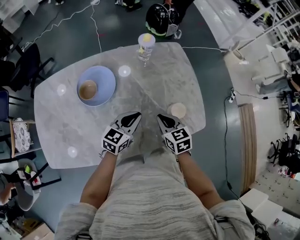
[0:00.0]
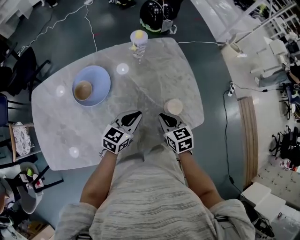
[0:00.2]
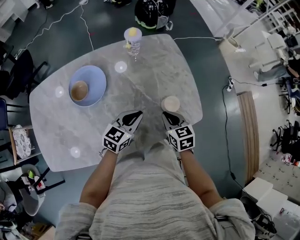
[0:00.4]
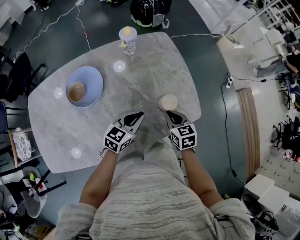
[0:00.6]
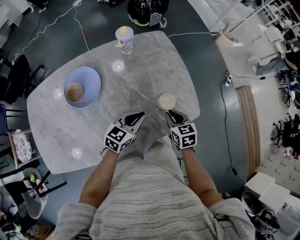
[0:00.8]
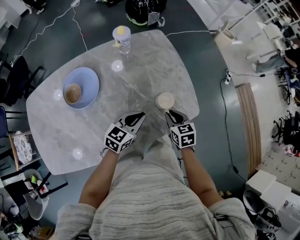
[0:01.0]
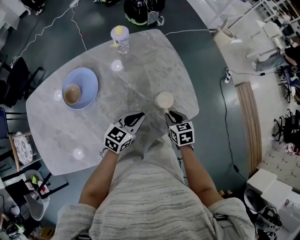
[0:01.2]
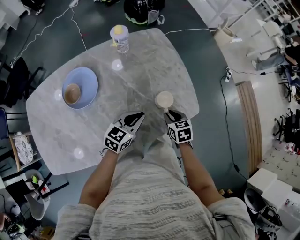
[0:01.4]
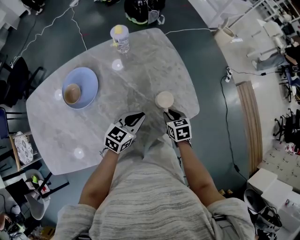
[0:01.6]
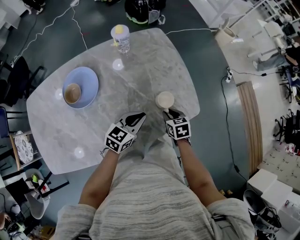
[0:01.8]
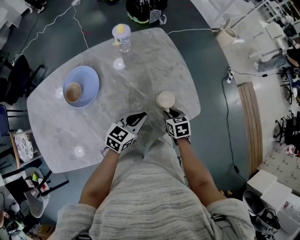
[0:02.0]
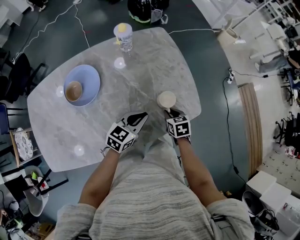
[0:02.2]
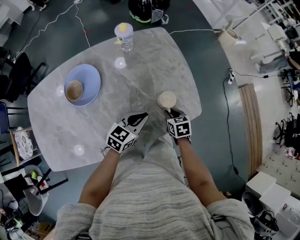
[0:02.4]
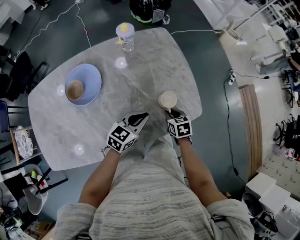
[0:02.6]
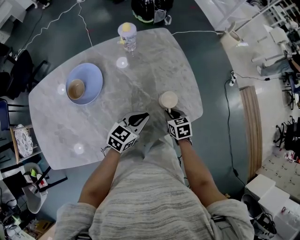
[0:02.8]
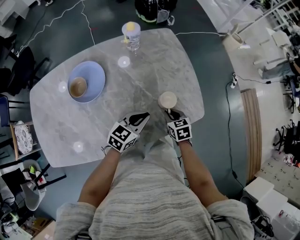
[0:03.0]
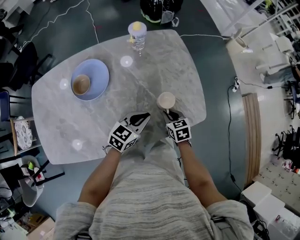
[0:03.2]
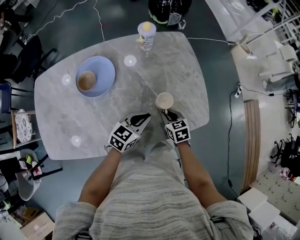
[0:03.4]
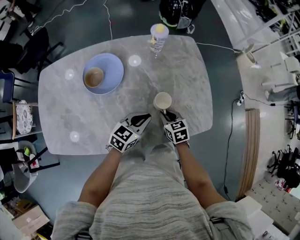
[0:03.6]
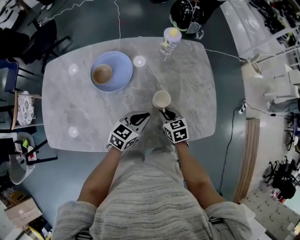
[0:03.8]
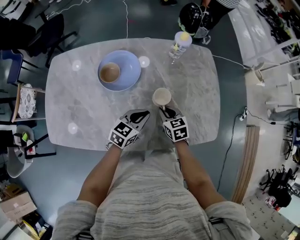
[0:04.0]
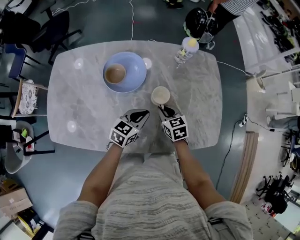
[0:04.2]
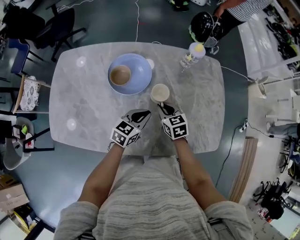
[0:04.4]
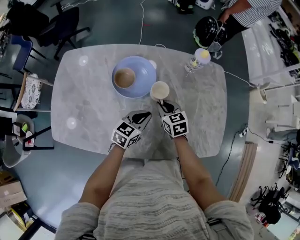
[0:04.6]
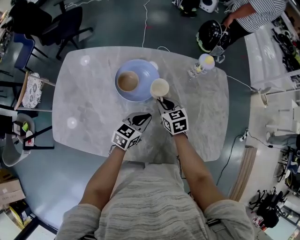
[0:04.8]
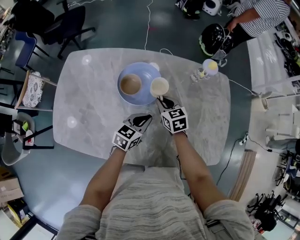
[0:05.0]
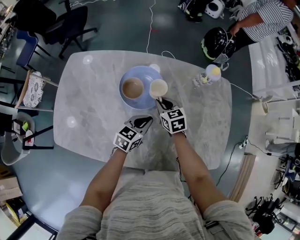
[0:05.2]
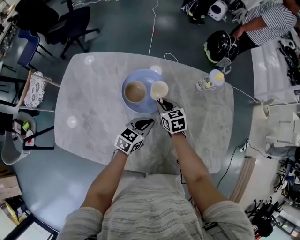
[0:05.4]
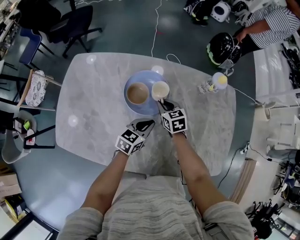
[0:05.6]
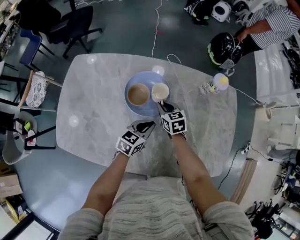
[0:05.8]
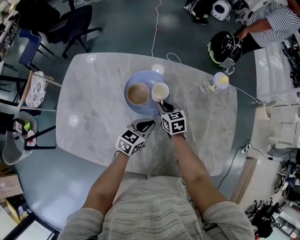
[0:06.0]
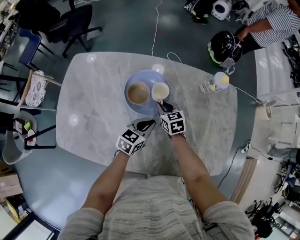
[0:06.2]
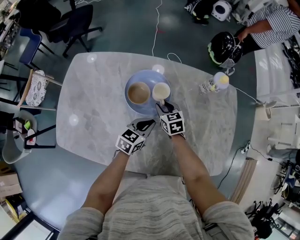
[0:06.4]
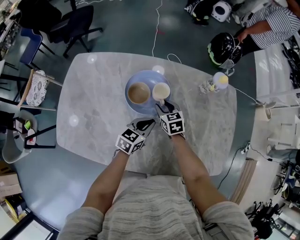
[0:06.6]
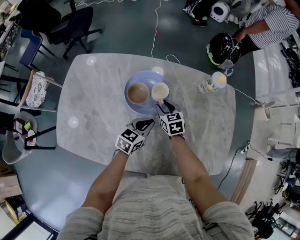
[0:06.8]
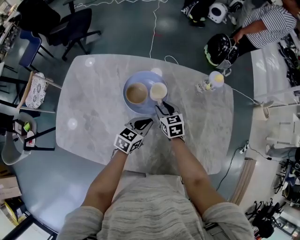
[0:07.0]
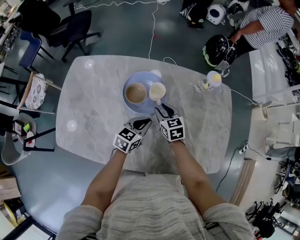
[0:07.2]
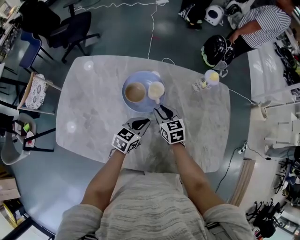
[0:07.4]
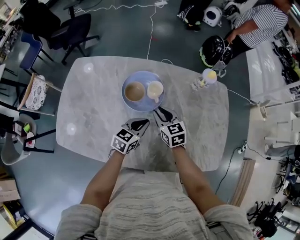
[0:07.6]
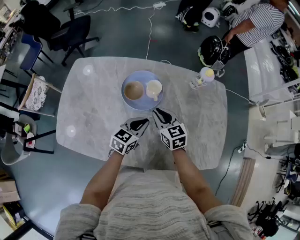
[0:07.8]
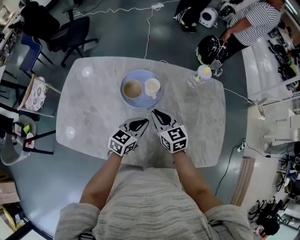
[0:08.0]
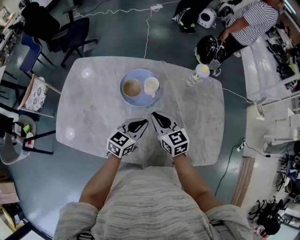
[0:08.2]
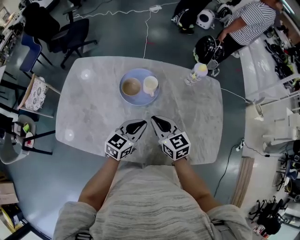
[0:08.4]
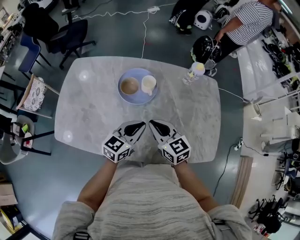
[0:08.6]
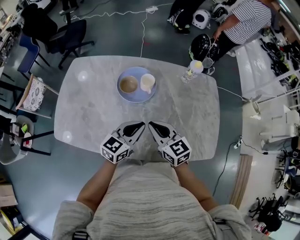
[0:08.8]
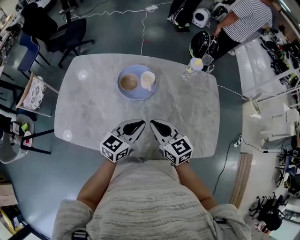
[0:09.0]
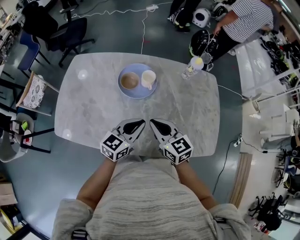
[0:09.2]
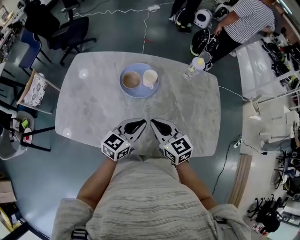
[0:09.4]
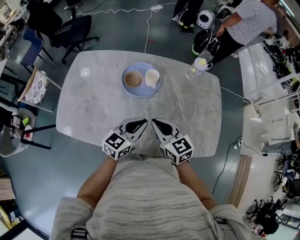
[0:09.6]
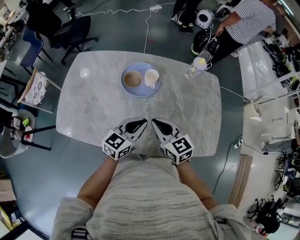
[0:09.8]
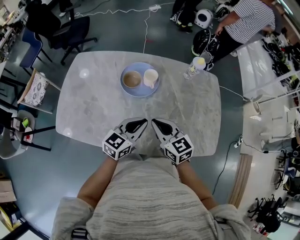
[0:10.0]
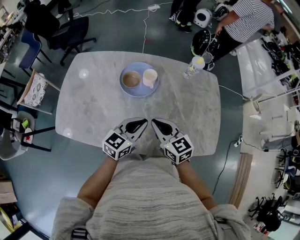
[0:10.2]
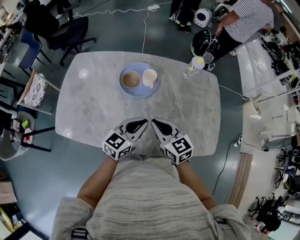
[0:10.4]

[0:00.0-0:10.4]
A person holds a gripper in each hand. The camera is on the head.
0:00.0 to 0:01.4: The right gripper shifts some 15 cm to the right and downward, and swivels about 20 degrees; the left gripper shifts some 10 cm to the right.
0:01.4 to 0:03.0: There are only small adjustments of the grippers.
0:03.0 to 0:04.4: Both grippers travel together to the left, some 20 cm. The right gripper swivels roughly 30 degrees. Meanwhile the left gripper changes its angle by about 20 degrees.
0:04.4 to 0:06.0: The right gripper shifts about 15 cm forward and to the left; the left gripper travels to the left and forward by approximately 10 cm.
0:06.0 to 0:07.4: The right gripper travels upward and backward by roughly 10 cm.
0:07.4 to 0:09.0: The left gripper shifts roughly 15 cm upward and backward, while the right gripper moves backward and upward, about 20 cm, and closes its fingers.
0:09.0 to 0:10.4: Neither gripper changes place.

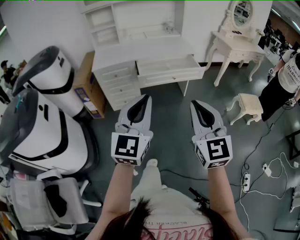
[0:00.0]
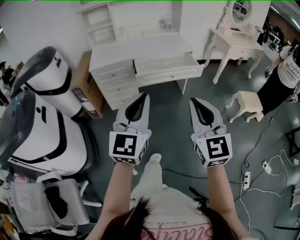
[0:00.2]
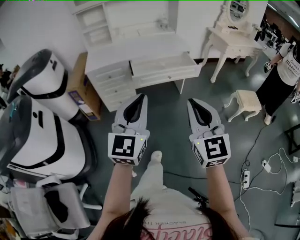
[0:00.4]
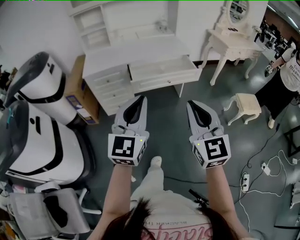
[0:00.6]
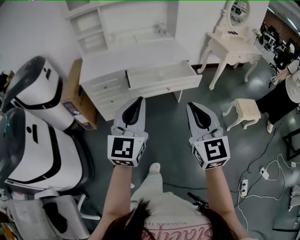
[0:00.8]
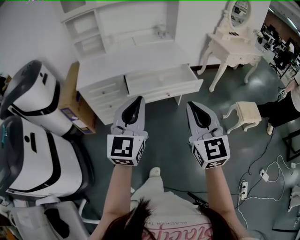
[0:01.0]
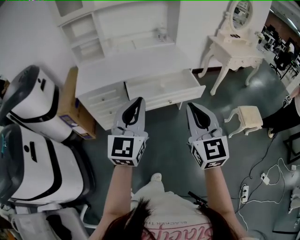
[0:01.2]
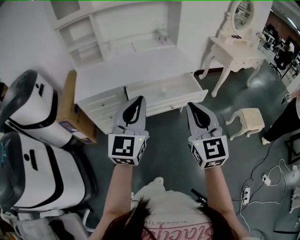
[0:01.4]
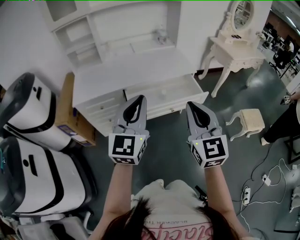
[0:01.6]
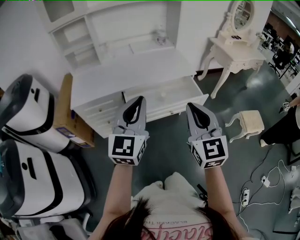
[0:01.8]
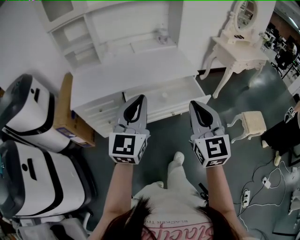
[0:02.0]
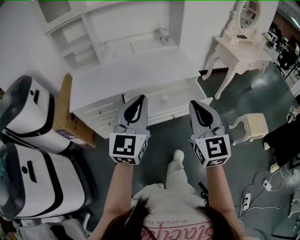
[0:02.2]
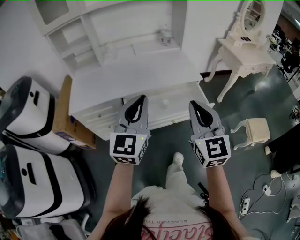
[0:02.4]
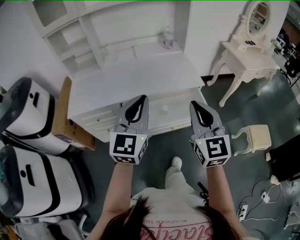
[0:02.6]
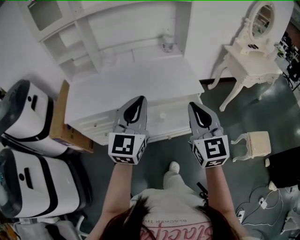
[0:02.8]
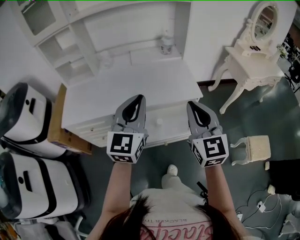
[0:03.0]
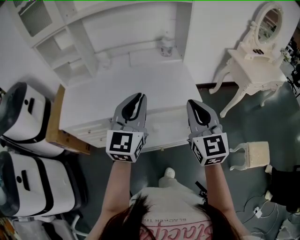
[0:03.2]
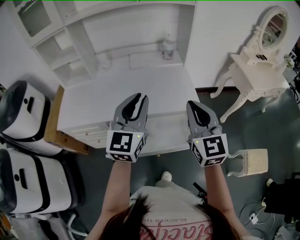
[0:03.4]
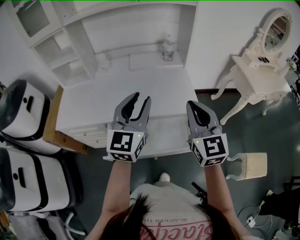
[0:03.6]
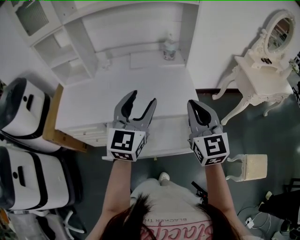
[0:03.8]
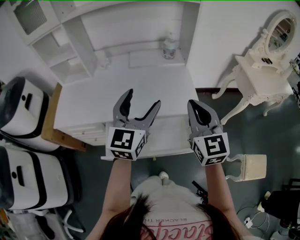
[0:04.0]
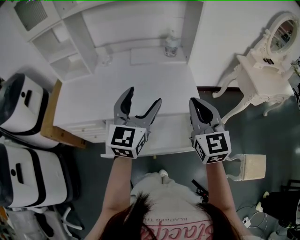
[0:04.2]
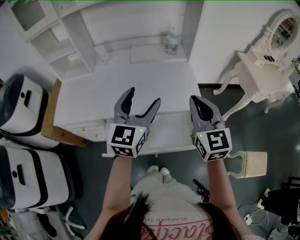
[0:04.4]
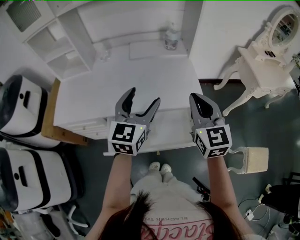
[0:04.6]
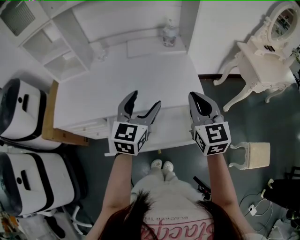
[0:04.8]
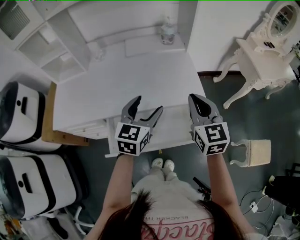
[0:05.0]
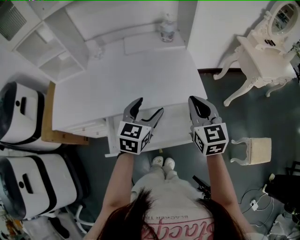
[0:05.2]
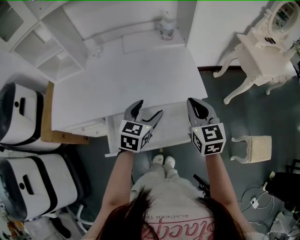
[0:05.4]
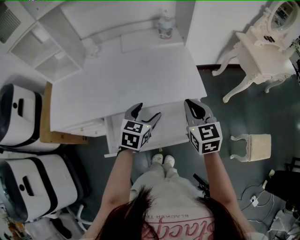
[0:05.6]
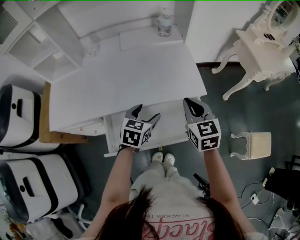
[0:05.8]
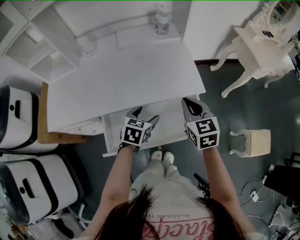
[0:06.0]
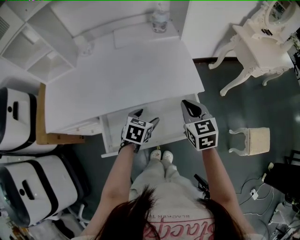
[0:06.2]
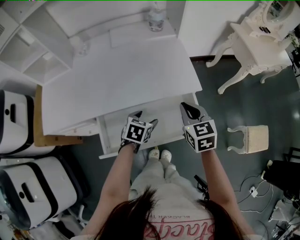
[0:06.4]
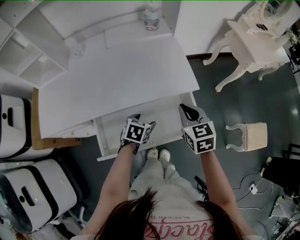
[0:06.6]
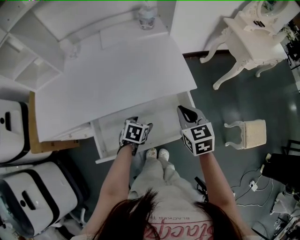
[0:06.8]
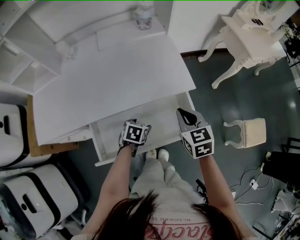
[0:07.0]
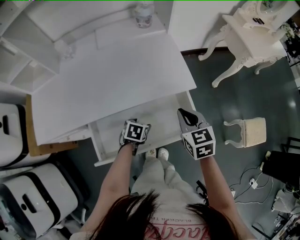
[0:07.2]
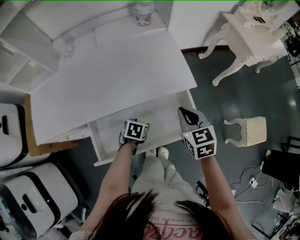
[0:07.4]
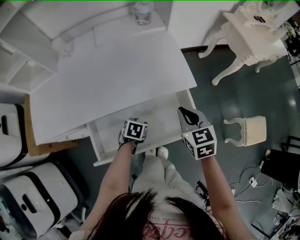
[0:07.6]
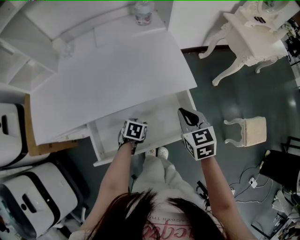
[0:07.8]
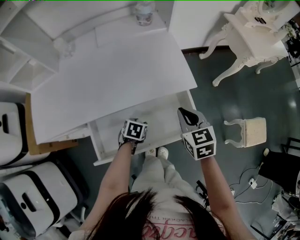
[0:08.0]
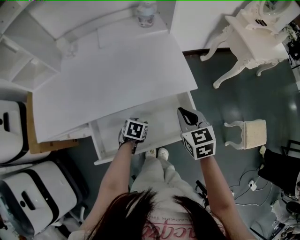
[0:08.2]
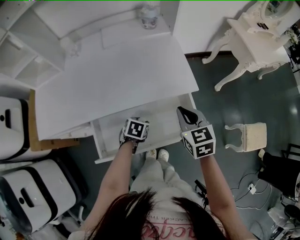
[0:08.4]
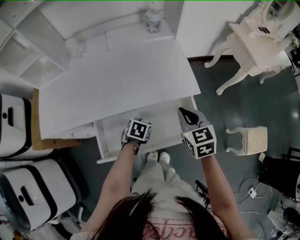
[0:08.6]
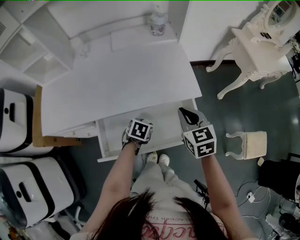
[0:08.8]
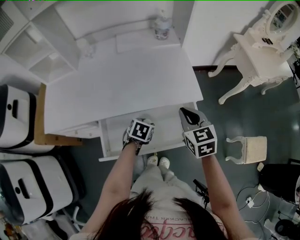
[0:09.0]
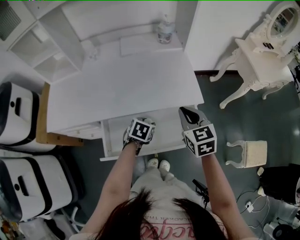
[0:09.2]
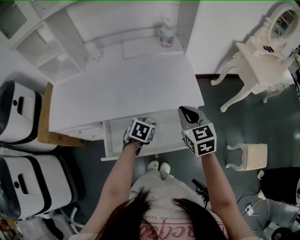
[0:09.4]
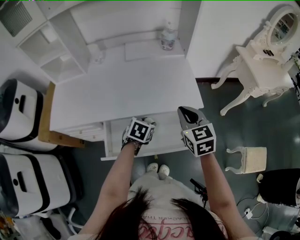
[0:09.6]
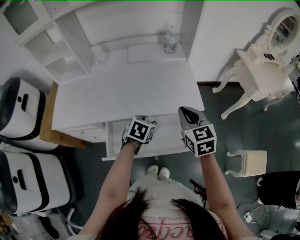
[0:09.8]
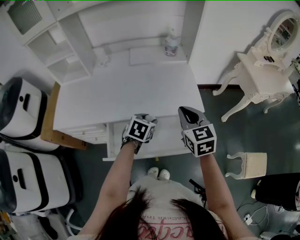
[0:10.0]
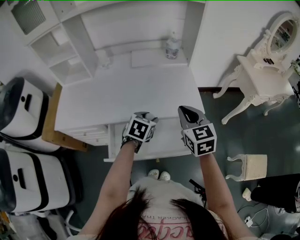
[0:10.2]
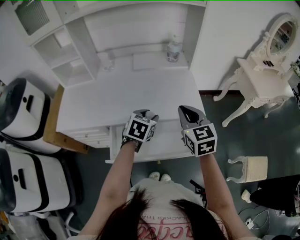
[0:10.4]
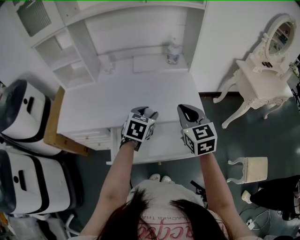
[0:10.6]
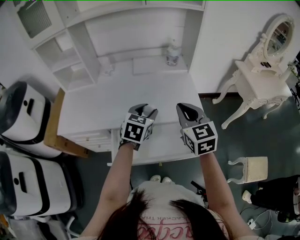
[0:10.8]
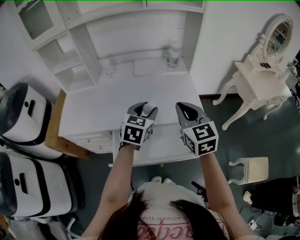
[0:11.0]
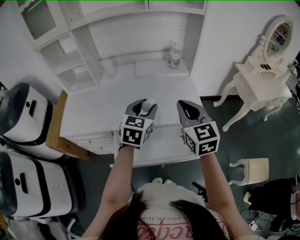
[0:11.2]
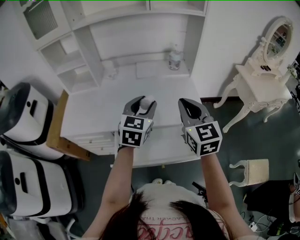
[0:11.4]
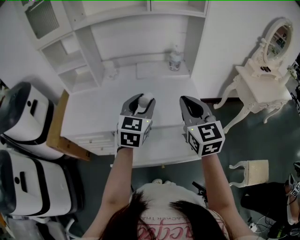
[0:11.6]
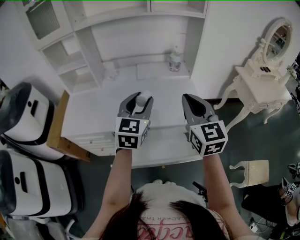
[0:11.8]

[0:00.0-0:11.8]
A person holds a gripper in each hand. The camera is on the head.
0:00.0 to 0:01.4: Both grippers travel together forward, some 30 cm.
0:01.4 to 0:03.0: Both grippers move forward, roughly 25 cm.
0:03.0 to 0:04.4: Both grippers move forward, some 10 cm. The left gripper opens its fingers.
0:04.4 to 0:06.0: The left gripper travels downward by approximately 25 cm, and points its fingers some 40 degrees further downward. Meanwhile the right gripper shifts approximately 15 cm downward, and turns by about 20 degrees.
0:06.0 to 0:07.4: The right gripper heads downward, covering roughly 5 cm, while the left gripper travels downward by some 15 cm, and turns by roughly 20 degrees.
0:07.4 to 0:08.8: The grippers stay close to where they were, moving slightly.
0:08.8 to 0:10.4: The left gripper moves upward, some 20 cm, and swivels about 30 degrees. The right gripper shifts some 10 cm upward.
0:10.4 to 0:11.8: The right gripper heads upward, covering about 10 cm. The left gripper goes approximately 20 cm upward, and tilts its fingers roughly 30 degrees upward.

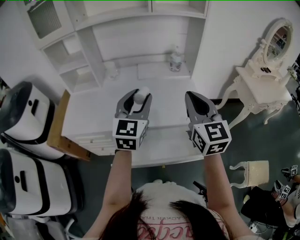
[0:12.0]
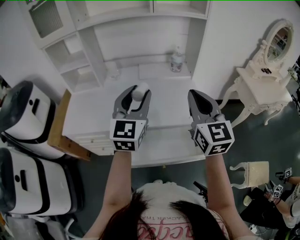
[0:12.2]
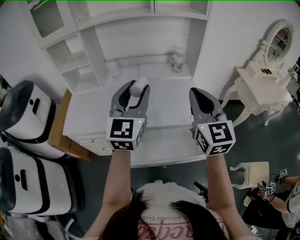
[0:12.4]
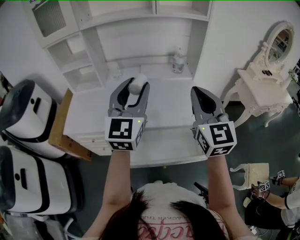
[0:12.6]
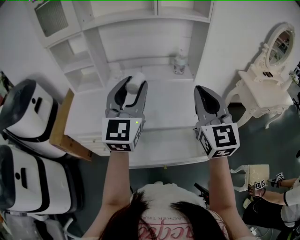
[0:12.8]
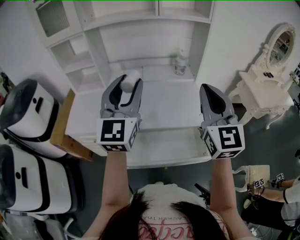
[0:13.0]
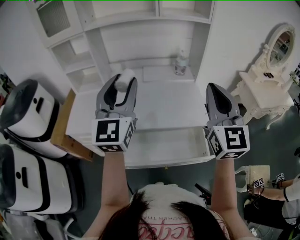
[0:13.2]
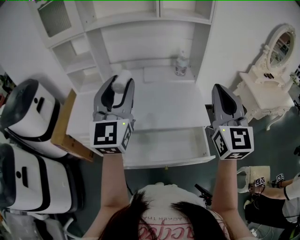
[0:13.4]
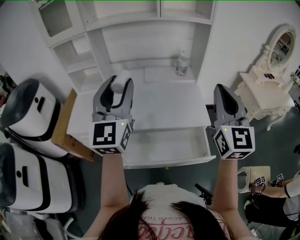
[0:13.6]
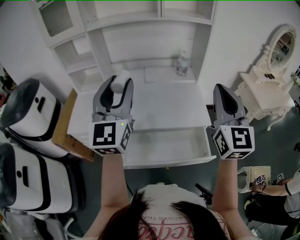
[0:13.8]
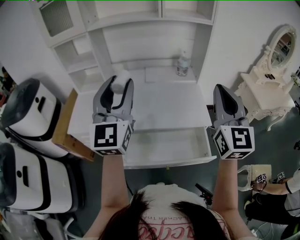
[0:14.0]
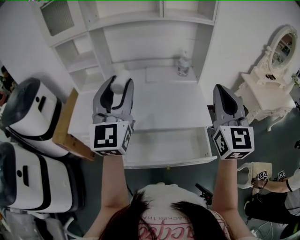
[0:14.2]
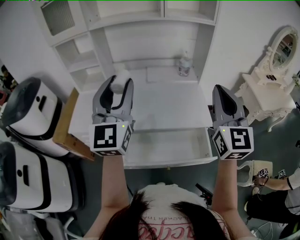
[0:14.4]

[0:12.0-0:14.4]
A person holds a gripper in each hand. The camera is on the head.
0:12.0 to 0:13.2: The right gripper is displaced upward by approximately 10 cm. The left gripper travels upward and to the left by roughly 15 cm.
0:13.2 to 0:14.4: The grippers make only small movements.
